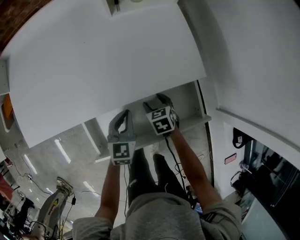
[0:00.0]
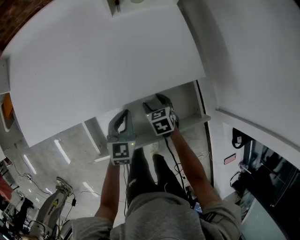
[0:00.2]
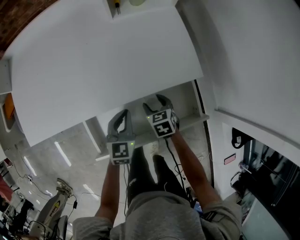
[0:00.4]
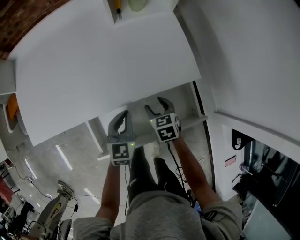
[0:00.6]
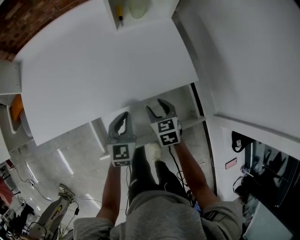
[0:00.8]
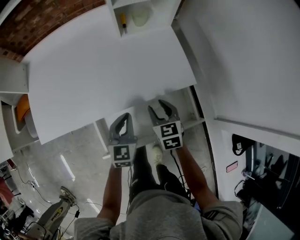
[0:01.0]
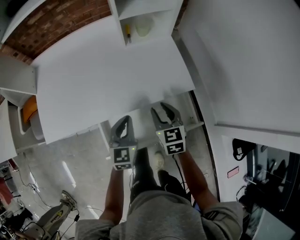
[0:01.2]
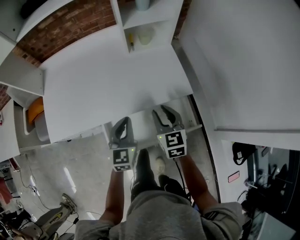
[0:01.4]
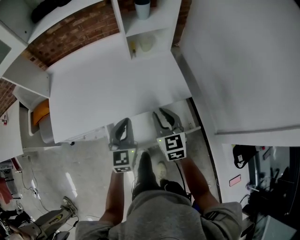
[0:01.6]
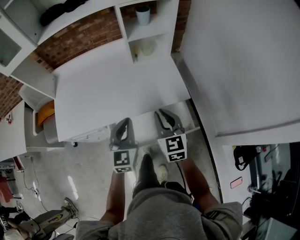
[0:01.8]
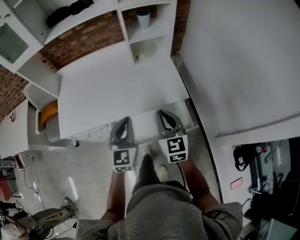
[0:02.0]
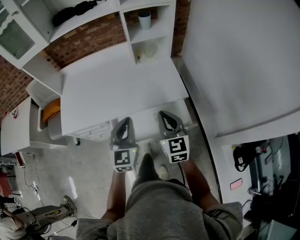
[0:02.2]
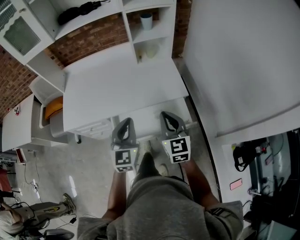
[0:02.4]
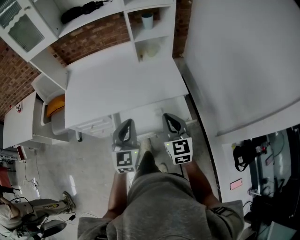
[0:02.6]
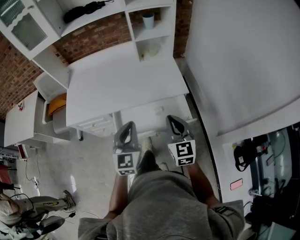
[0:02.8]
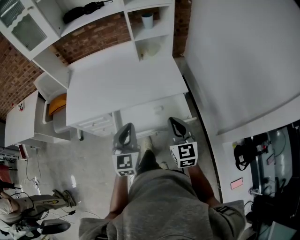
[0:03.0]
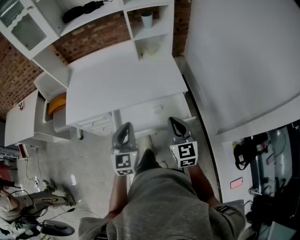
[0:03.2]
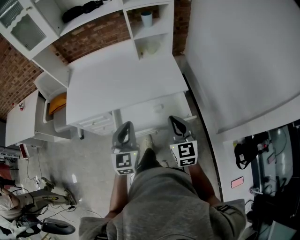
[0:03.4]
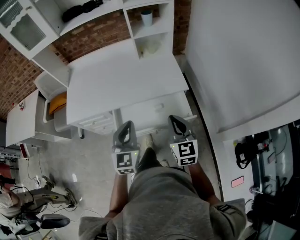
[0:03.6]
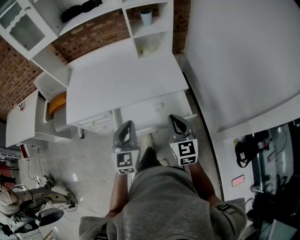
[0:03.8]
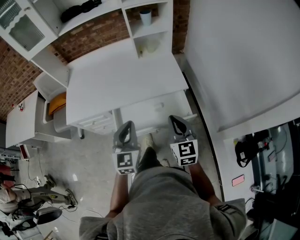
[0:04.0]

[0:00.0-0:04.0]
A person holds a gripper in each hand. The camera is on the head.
0:00.0 to 0:01.4: Both grippers move upward, about 25 cm. The right gripper tilts its fingers approximately 30 degrees upward, and closes.
0:01.4 to 0:02.6: Both grippers move backward and upward, some 20 cm. The right gripper closes.
0:02.6 to 0:04.0: The right gripper moves approximately 5 cm.

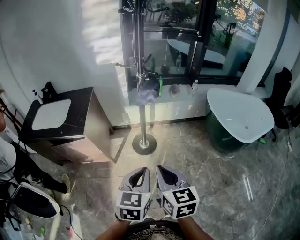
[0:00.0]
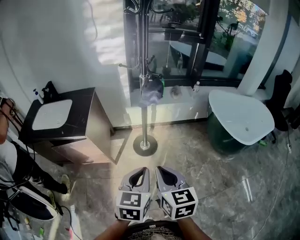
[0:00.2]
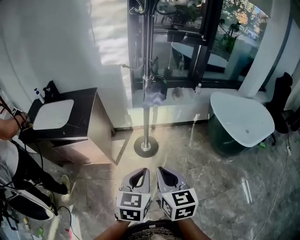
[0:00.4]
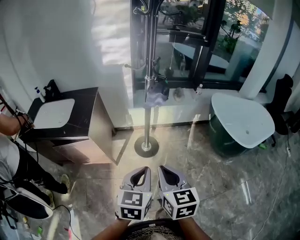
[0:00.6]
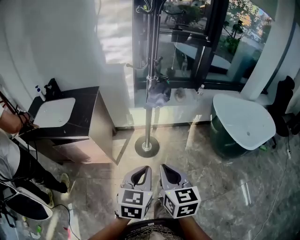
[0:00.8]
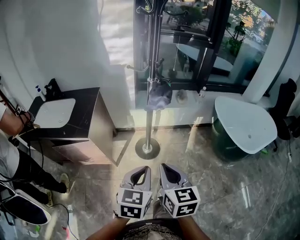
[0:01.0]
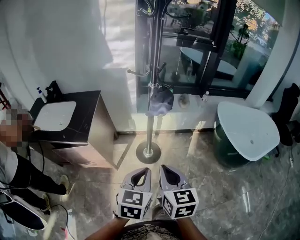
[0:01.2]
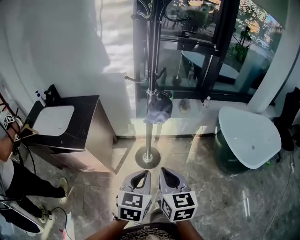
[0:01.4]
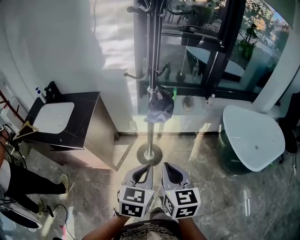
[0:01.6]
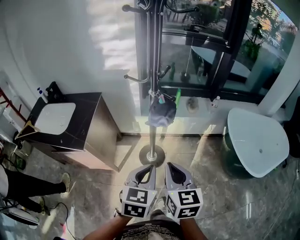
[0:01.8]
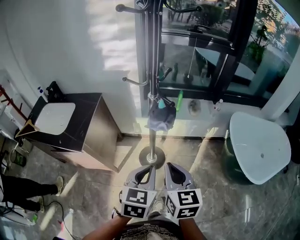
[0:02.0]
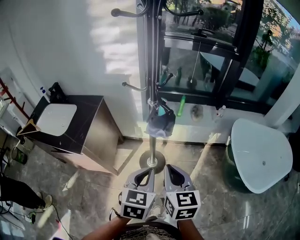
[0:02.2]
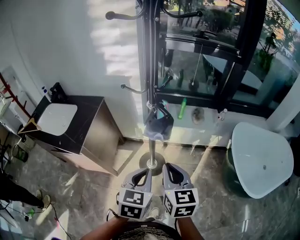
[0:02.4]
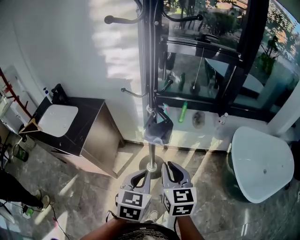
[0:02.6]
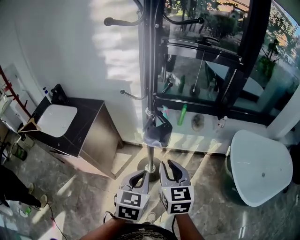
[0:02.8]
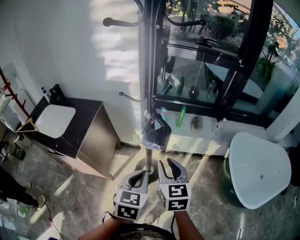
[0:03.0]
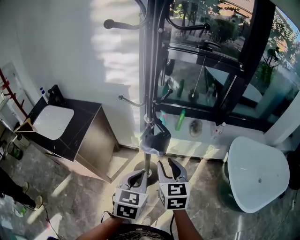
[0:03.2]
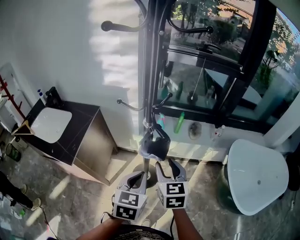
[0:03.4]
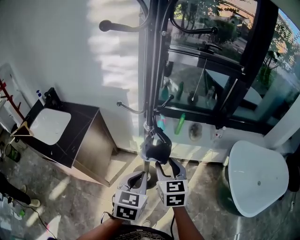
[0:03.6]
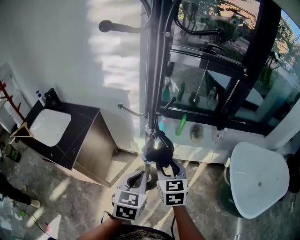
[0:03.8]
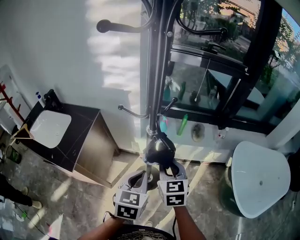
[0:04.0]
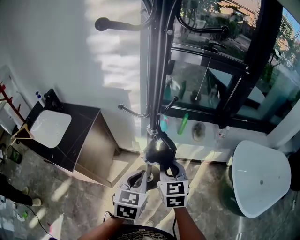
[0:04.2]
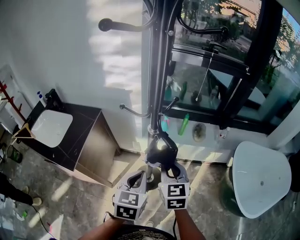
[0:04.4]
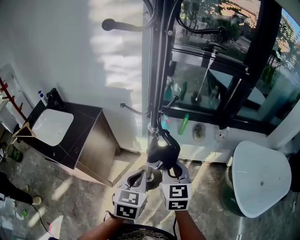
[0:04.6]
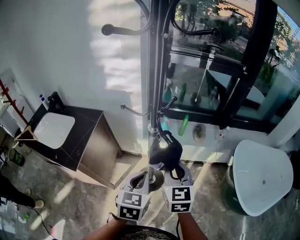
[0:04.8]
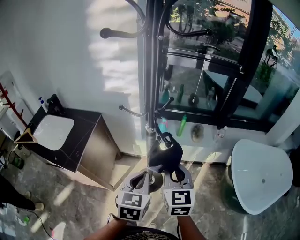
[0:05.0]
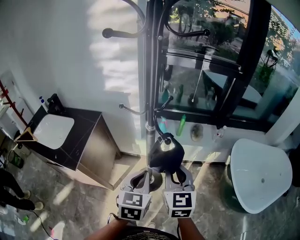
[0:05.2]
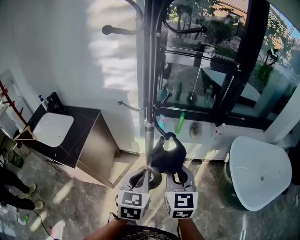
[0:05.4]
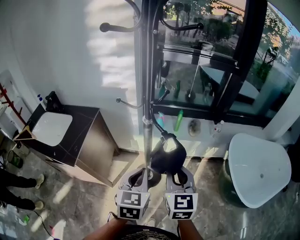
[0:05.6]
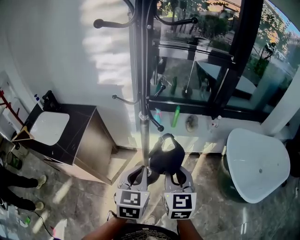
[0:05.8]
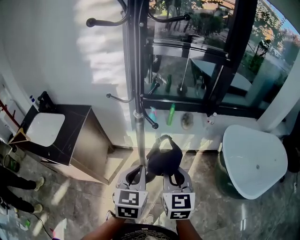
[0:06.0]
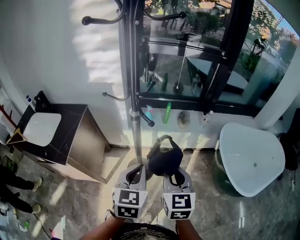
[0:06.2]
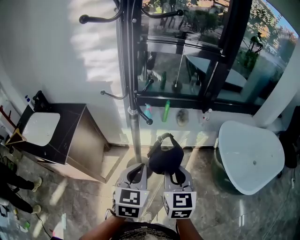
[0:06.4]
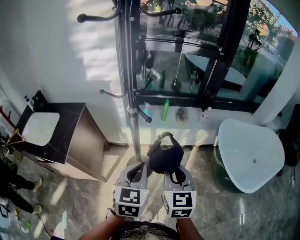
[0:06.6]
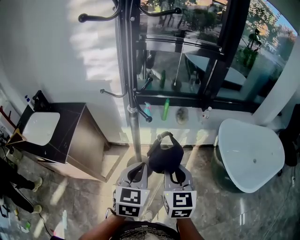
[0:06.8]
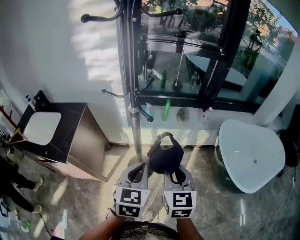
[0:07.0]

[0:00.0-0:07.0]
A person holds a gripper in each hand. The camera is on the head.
0:00.0 to 0:01.4: Both grippers travel together forward, approximately 10 cm.
0:01.4 to 0:02.8: Both grippers move forward, about 15 cm.
0:02.8 to 0:04.2: Both grippers move forward, about 10 cm. The right gripper opens, then closes again.
0:04.2 to 0:05.6: The right gripper is displaced backward and upward by approximately 10 cm. Meanwhile the left gripper ends up some 5 cm from where it was.
0:05.6 to 0:07.0: The right gripper shifts by roughly 5 cm.

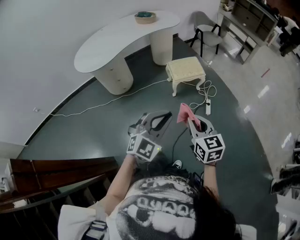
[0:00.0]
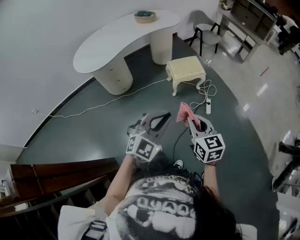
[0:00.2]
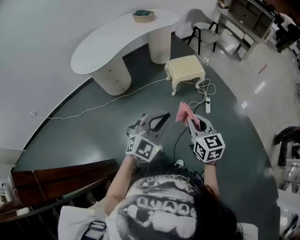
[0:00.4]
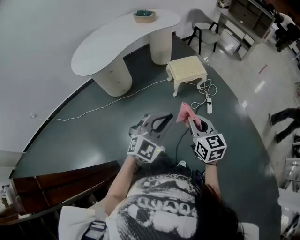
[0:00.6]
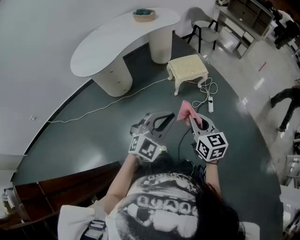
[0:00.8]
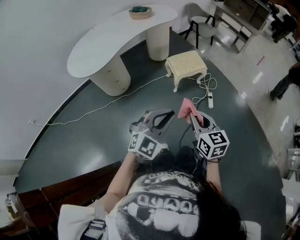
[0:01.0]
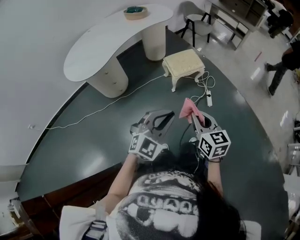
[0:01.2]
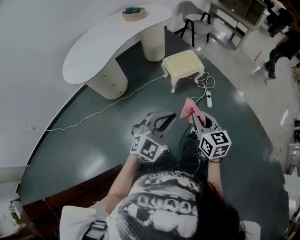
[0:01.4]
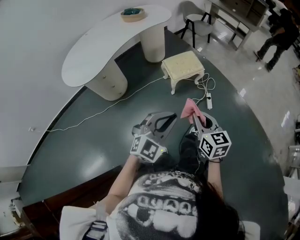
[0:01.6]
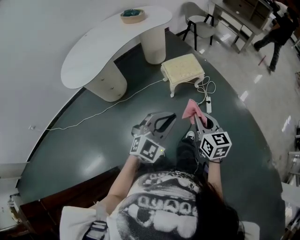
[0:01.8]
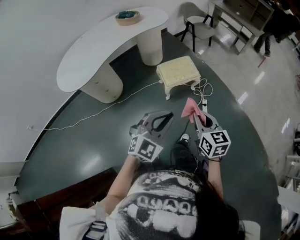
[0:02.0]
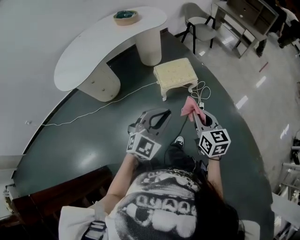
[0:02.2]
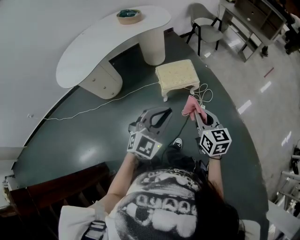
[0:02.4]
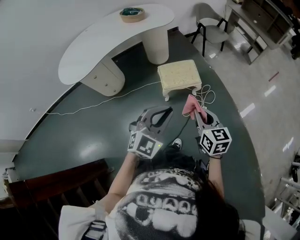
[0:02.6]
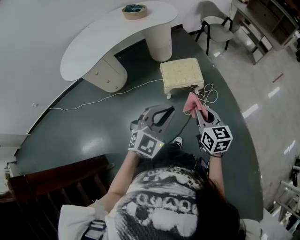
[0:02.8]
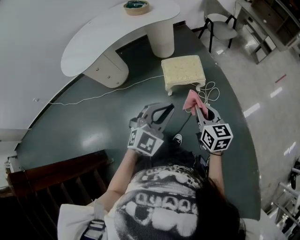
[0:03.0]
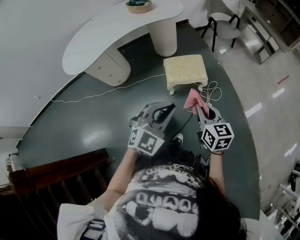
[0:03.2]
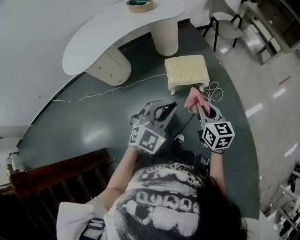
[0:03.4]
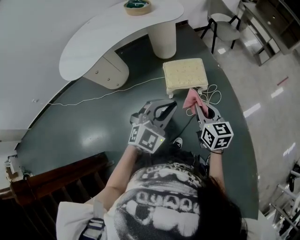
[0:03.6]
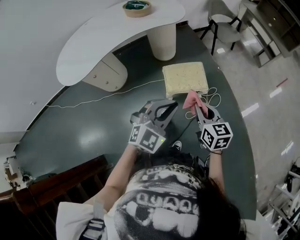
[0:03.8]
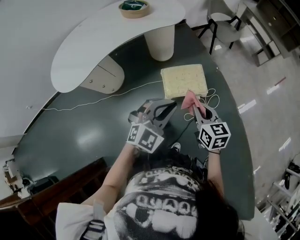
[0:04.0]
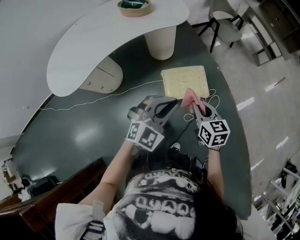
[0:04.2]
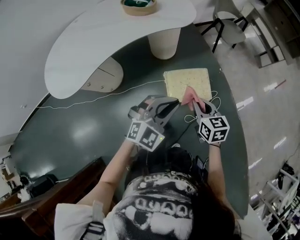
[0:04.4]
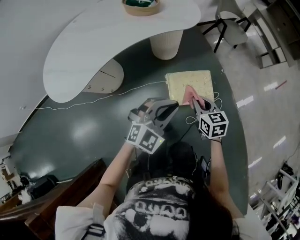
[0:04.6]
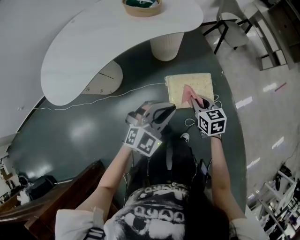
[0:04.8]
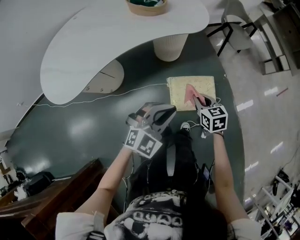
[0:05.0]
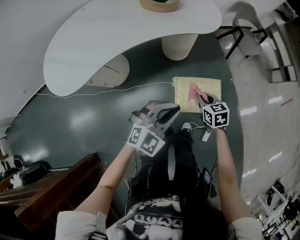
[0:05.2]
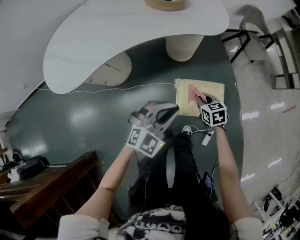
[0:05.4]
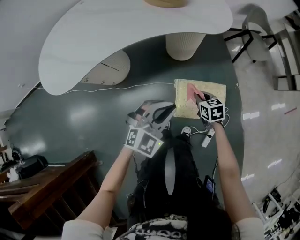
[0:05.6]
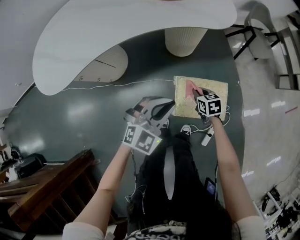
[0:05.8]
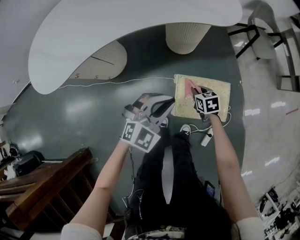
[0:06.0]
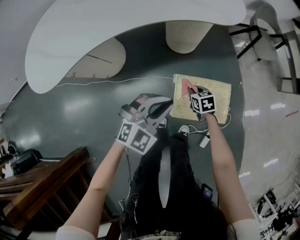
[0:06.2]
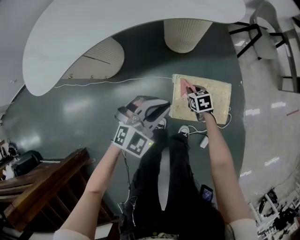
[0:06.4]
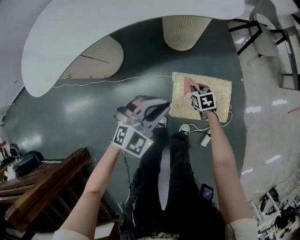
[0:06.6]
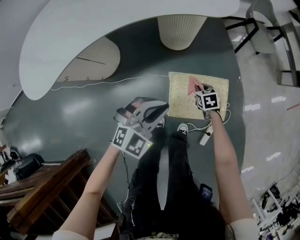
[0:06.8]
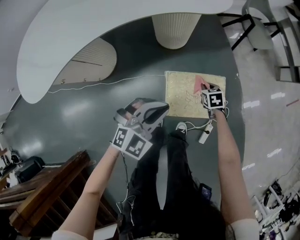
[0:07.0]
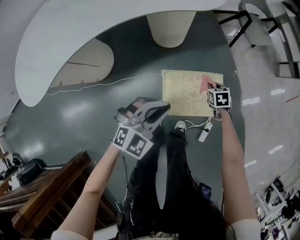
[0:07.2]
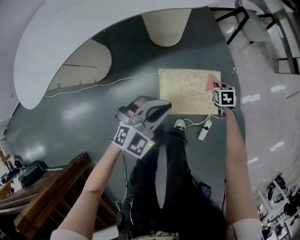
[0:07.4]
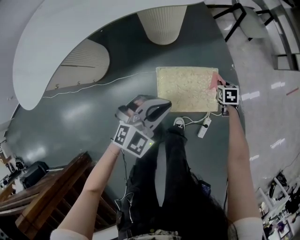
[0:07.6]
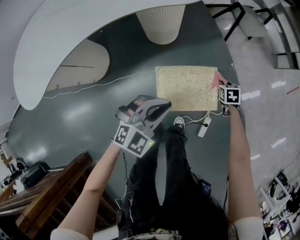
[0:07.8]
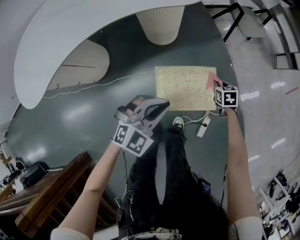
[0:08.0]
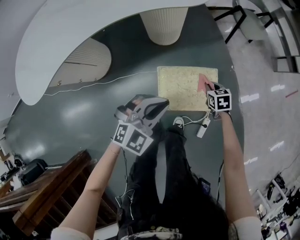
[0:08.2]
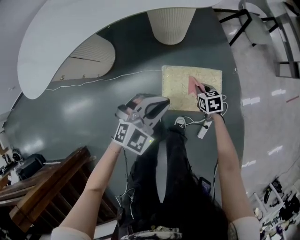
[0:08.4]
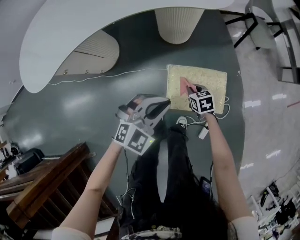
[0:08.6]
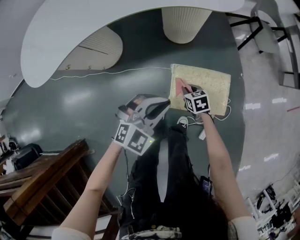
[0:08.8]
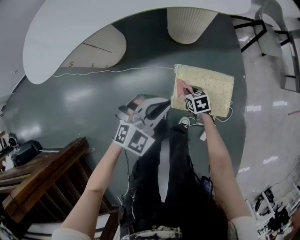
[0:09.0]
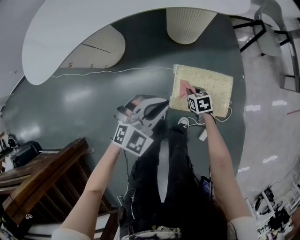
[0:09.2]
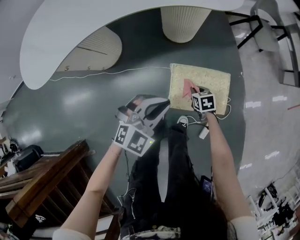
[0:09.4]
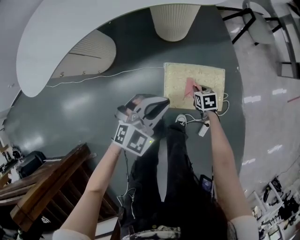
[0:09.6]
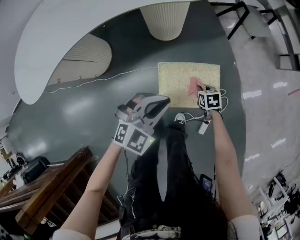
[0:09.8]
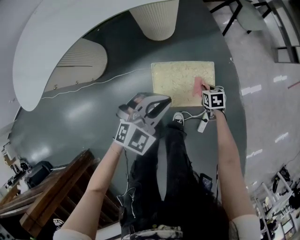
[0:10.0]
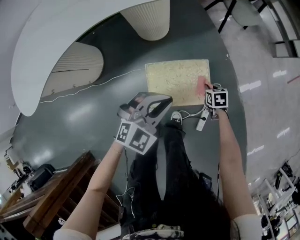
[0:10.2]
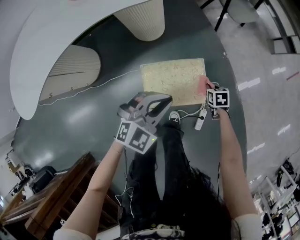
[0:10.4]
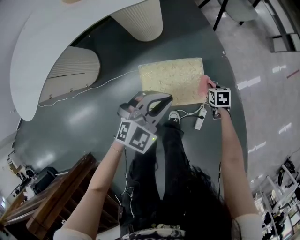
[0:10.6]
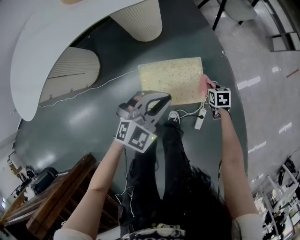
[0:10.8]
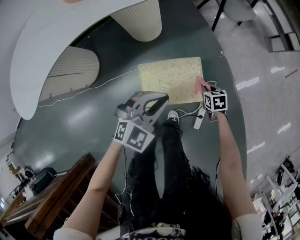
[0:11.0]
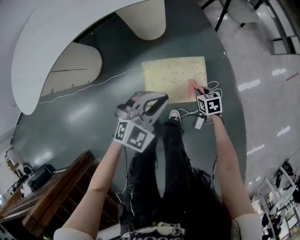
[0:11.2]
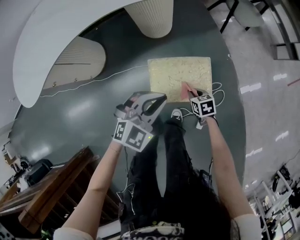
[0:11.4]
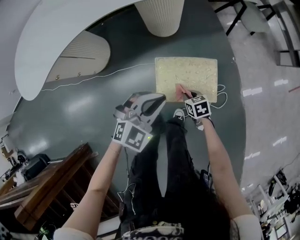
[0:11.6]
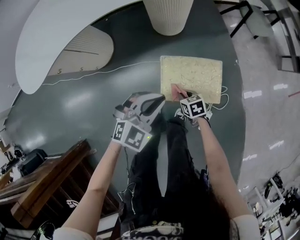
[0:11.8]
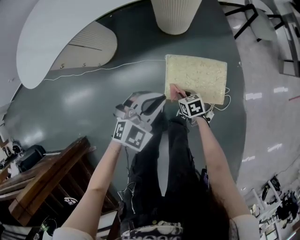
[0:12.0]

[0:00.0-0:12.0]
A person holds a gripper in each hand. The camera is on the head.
0:00.0 to 0:01.6: The left gripper travels forward and to the left by roughly 10 cm. Meanwhile the right gripper heads forward, covering approximately 10 cm.
0:01.6 to 0:03.0: The two grippers go about 30 cm forward and to the right.
0:03.0 to 0:04.4: The left gripper shifts some 25 cm forward. The right gripper shifts about 30 cm forward and to the left.
0:04.4 to 0:06.0: The right gripper heads downward and forward, covering roughly 40 cm, and turns by approximately 30 degrees. Meanwhile the left gripper heads downward and forward, covering approximately 25 cm.
0:06.0 to 0:07.6: The left gripper changes place by approximately 10 cm; the right gripper ends up roughly 25 cm from where it was, and changes its angle by about 20 degrees.
0:07.6 to 0:09.0: The left gripper moves approximately 10 cm. The right gripper moves roughly 30 cm, and swivels roughly 30 degrees.
0:09.0 to 0:10.4: The right gripper goes about 30 cm to the right, and turns by about 30 degrees. Meanwhile the left gripper is displaced to the right by approximately 15 cm.
0:10.4 to 0:12.0: The right gripper moves roughly 30 cm, and rotates about 30 degrees. Meanwhile the left gripper moves about 15 cm.
